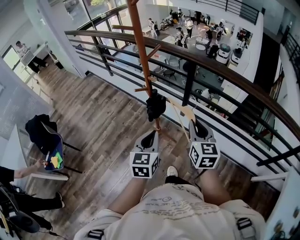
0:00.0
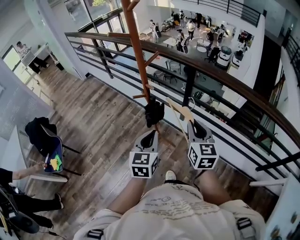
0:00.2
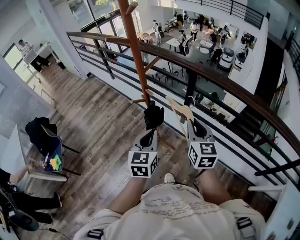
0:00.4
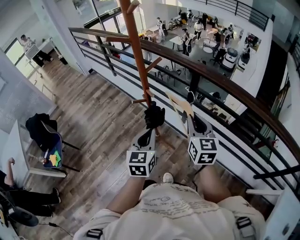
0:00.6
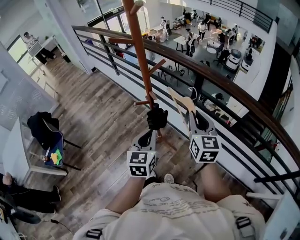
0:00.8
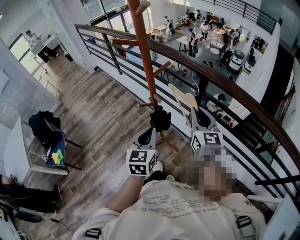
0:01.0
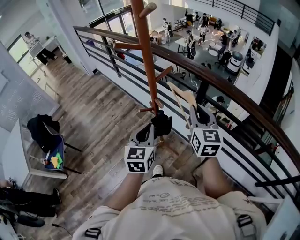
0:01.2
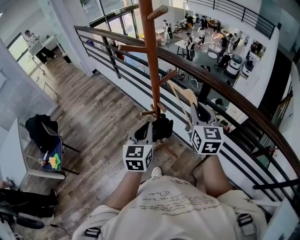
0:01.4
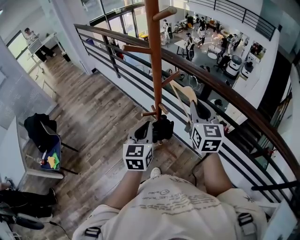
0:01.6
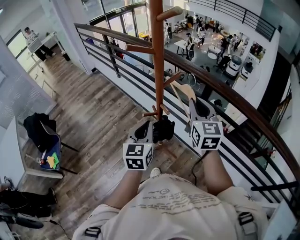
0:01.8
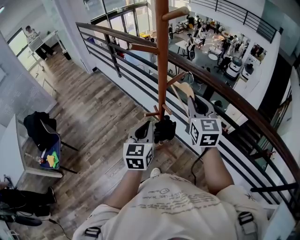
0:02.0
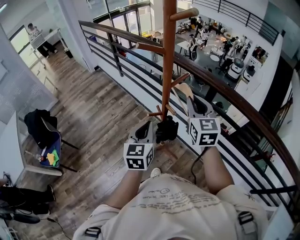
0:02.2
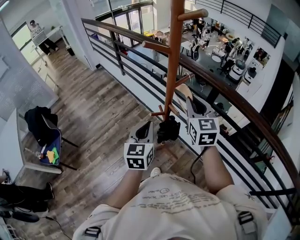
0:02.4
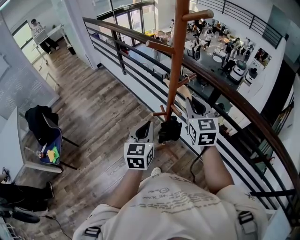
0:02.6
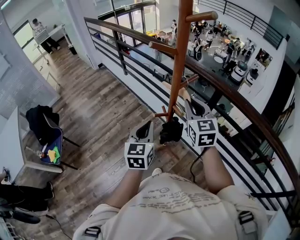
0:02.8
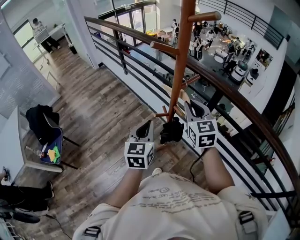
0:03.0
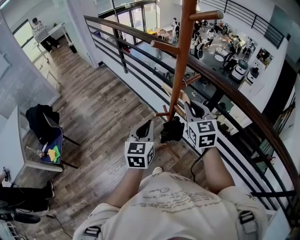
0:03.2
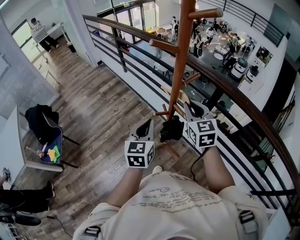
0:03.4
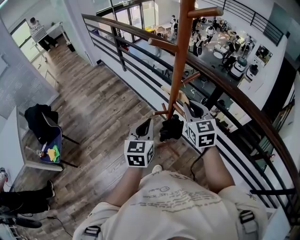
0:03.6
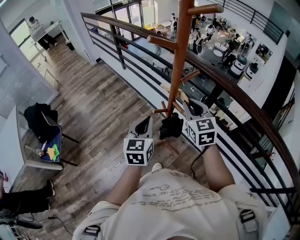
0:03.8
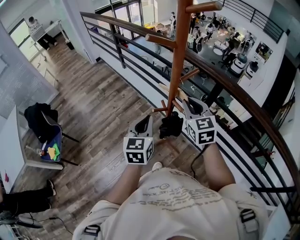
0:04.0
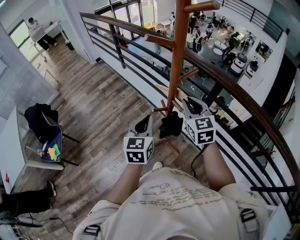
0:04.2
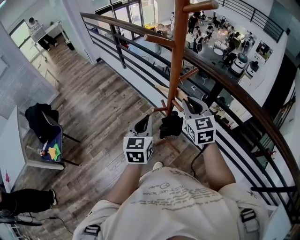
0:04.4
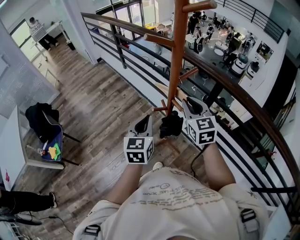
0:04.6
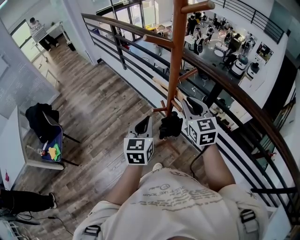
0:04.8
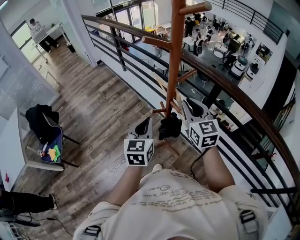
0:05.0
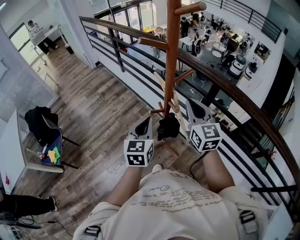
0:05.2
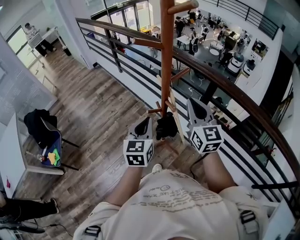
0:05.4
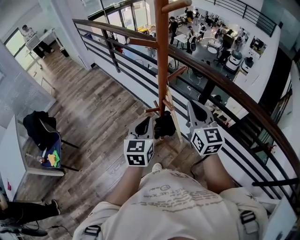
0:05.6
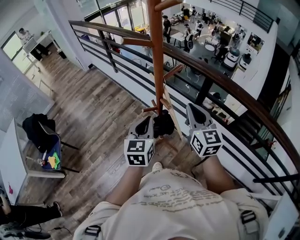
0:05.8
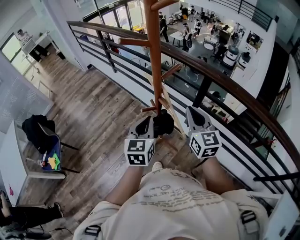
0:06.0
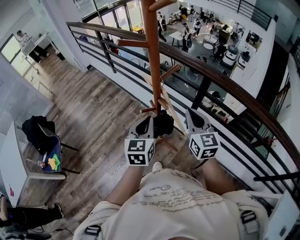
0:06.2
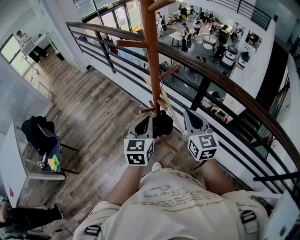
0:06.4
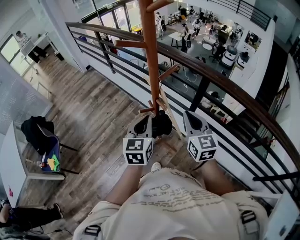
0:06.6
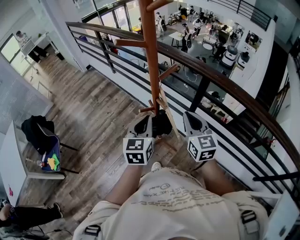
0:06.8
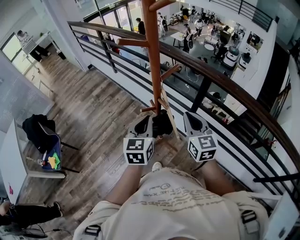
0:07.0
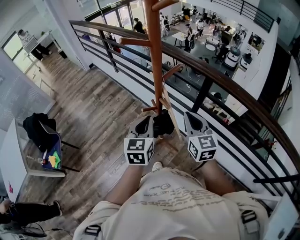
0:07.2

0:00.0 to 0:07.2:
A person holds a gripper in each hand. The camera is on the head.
0:00.0 to 0:01.4: The two grippers go approximately 20 cm forward.
0:01.4 to 0:02.8: The right gripper goes roughly 10 cm to the left, while the left gripper heads to the left, covering approximately 5 cm.
0:02.8 to 0:04.4: The grippers move only a little.
0:04.4 to 0:05.8: The left gripper shifts by some 5 cm. Meanwhile the right gripper heads to the right and backward, covering some 10 cm.
0:05.8 to 0:07.2: The grippers move only a little.

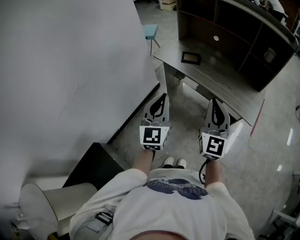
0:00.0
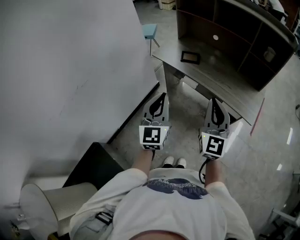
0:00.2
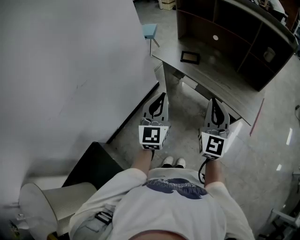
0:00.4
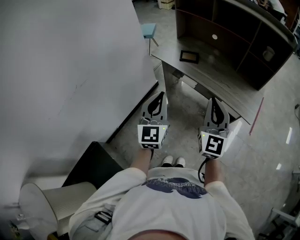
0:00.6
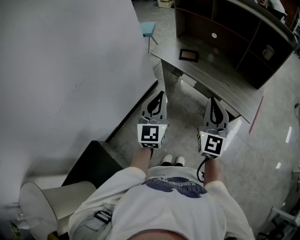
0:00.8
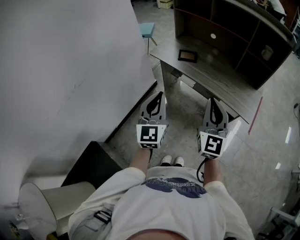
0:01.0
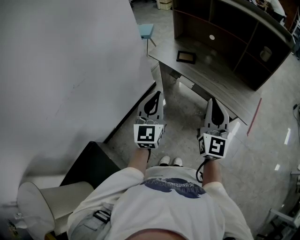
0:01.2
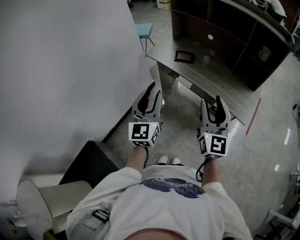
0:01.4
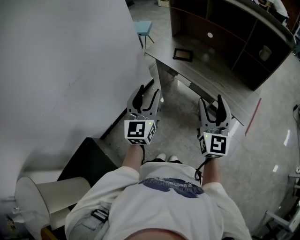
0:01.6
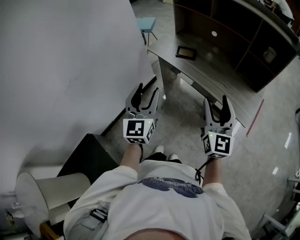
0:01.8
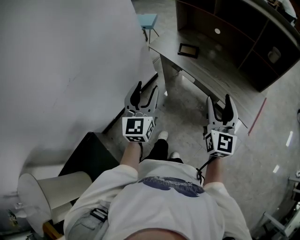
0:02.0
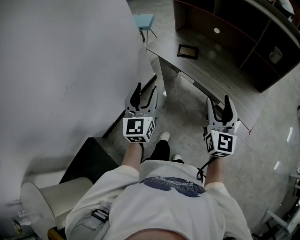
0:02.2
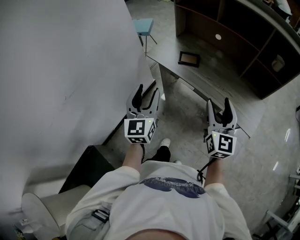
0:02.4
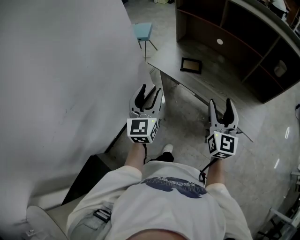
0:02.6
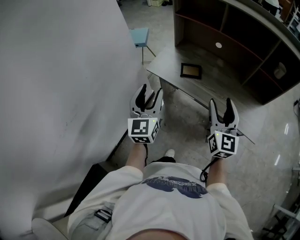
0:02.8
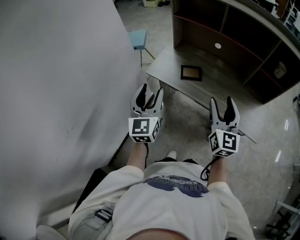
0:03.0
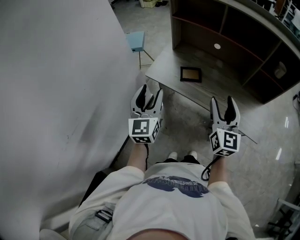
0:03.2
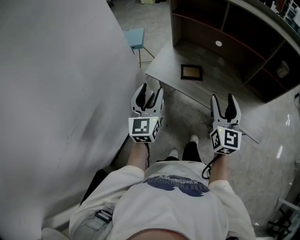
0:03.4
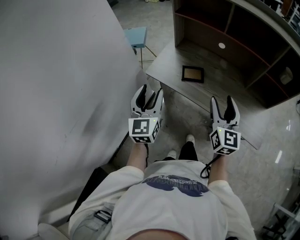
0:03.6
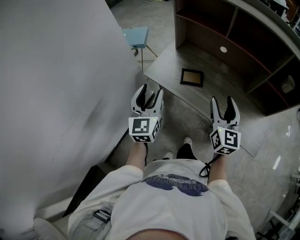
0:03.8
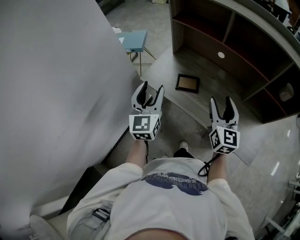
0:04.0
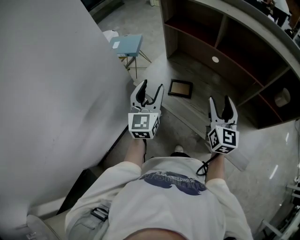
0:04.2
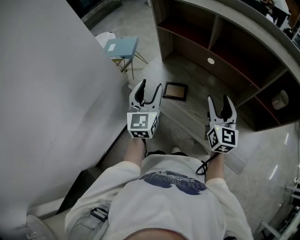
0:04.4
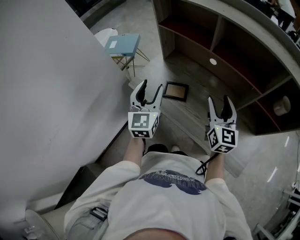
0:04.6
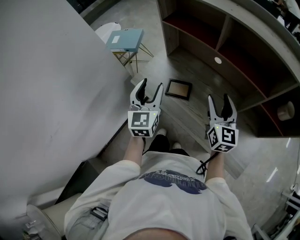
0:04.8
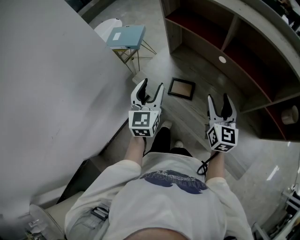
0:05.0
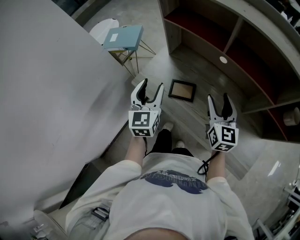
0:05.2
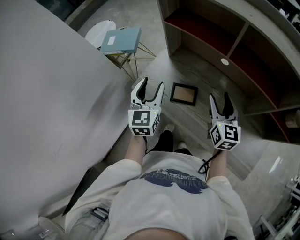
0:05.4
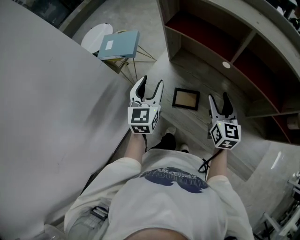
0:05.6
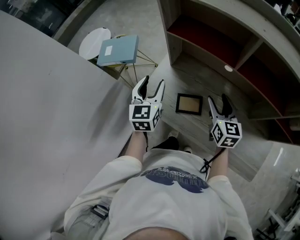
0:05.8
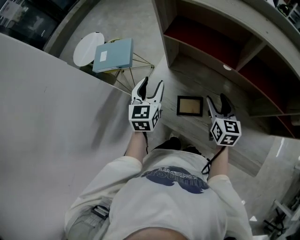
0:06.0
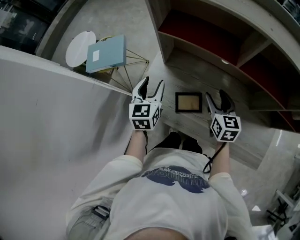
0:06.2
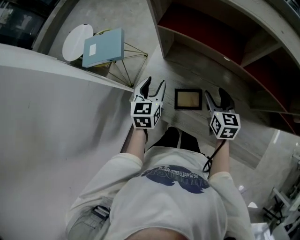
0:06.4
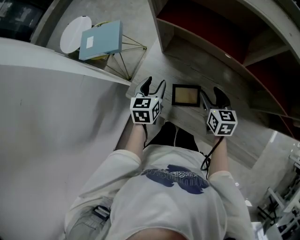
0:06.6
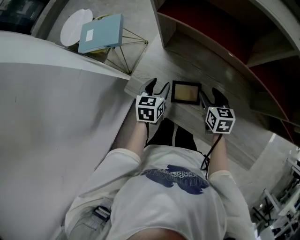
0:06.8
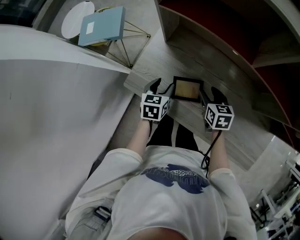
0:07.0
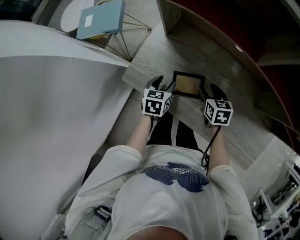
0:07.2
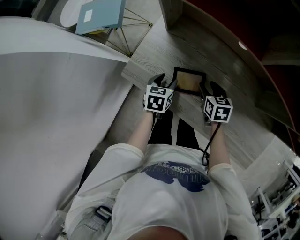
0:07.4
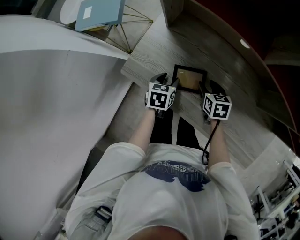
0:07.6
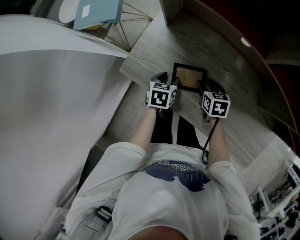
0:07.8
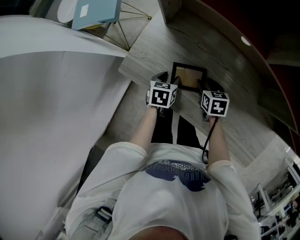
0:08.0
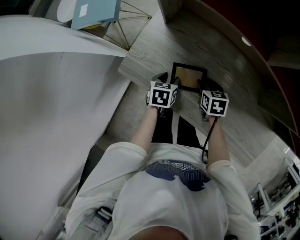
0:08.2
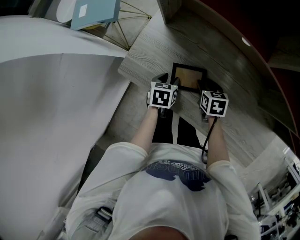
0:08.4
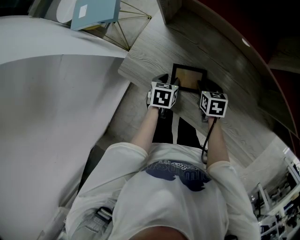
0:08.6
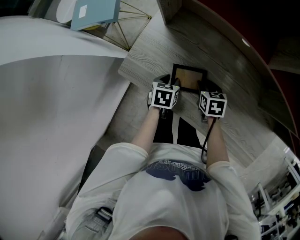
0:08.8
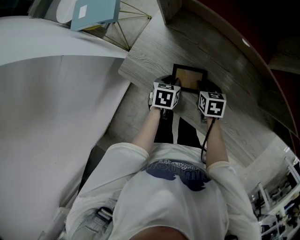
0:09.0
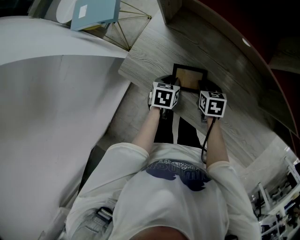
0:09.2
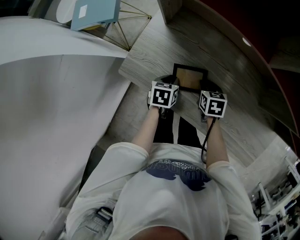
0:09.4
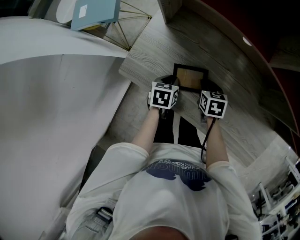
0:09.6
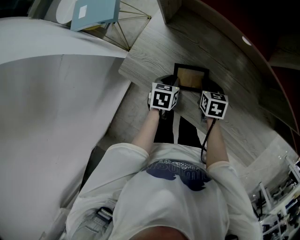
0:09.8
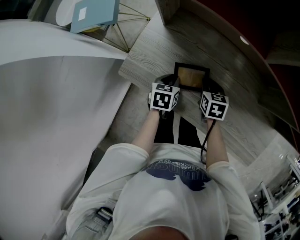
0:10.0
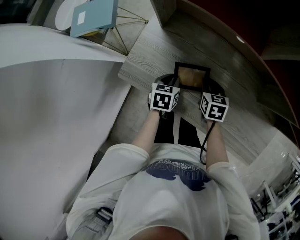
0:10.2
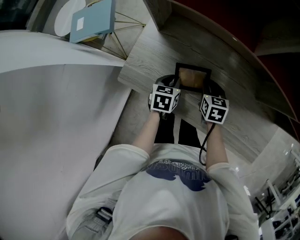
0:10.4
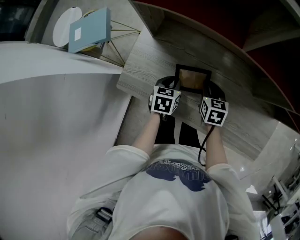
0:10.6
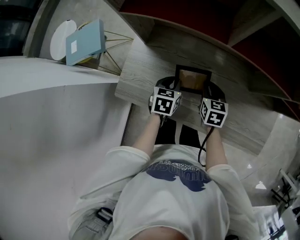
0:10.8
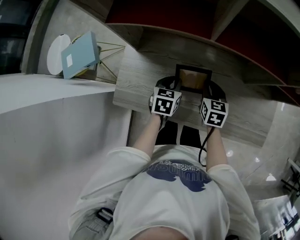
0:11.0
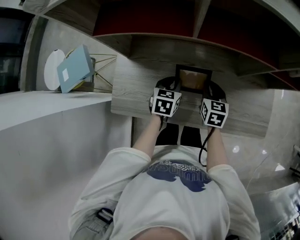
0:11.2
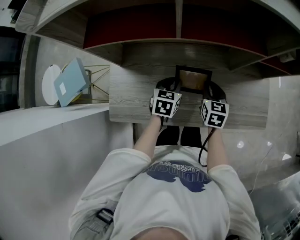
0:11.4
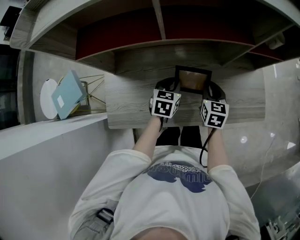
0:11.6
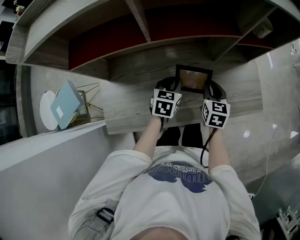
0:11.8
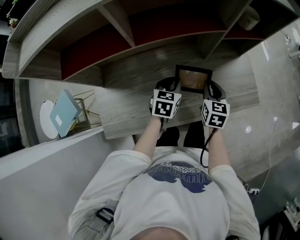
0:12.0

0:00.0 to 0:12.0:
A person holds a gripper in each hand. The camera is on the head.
0:00.0 to 0:01.6: The right gripper travels to the right by some 5 cm, and opens its fingers; the left gripper opens.
0:01.6 to 0:03.0: The left gripper is displaced forward and to the left by approximately 30 cm. The right gripper travels forward by roughly 25 cm.
0:03.0 to 0:04.4: Both grippers travel together forward and to the right, some 25 cm.
0:04.4 to 0:06.0: The right gripper heads forward, downward and to the left, covering about 20 cm, and swivels approximately 20 degrees. The left gripper moves forward and downward, roughly 25 cm.
0:06.0 to 0:07.6: The grippers both shift downward by about 25 cm. The right gripper turns by approximately 30 degrees, while the left gripper angles its fingers downward, by roughly 30 degrees.
0:07.6 to 0:09.0: The left gripper closes its fingers.
0:09.0 to 0:10.4: The left gripper ends up about 5 cm from where it was. The right gripper ends up approximately 5 cm from where it was.
0:10.4 to 0:12.0: The left gripper changes place by about 25 cm, and changes its angle by about 50 degrees. The right gripper changes place by about 30 cm, and swivels roughly 50 degrees.

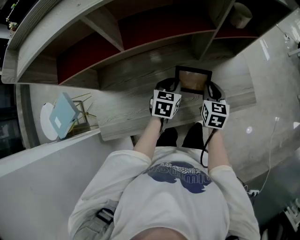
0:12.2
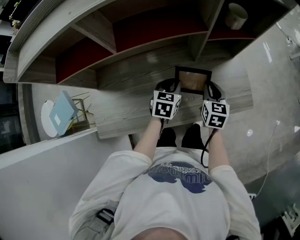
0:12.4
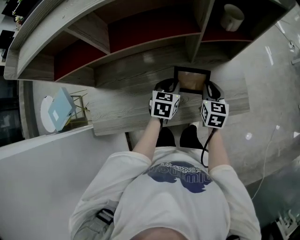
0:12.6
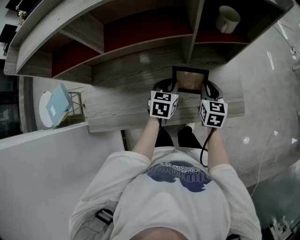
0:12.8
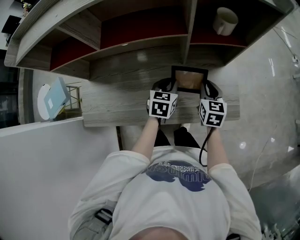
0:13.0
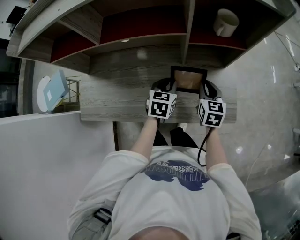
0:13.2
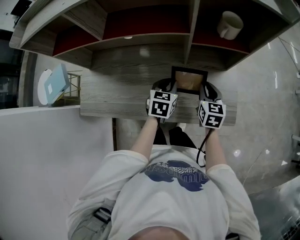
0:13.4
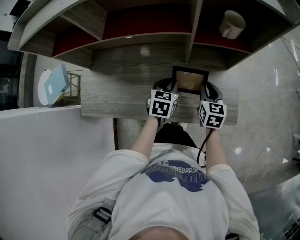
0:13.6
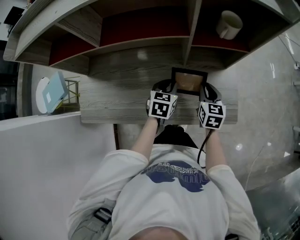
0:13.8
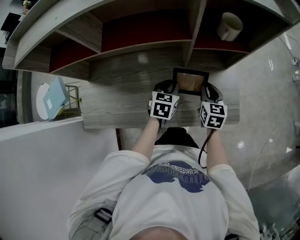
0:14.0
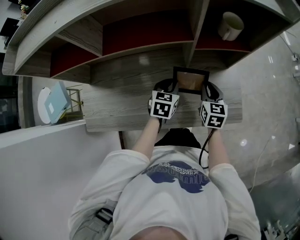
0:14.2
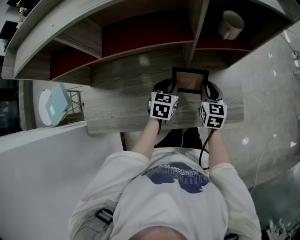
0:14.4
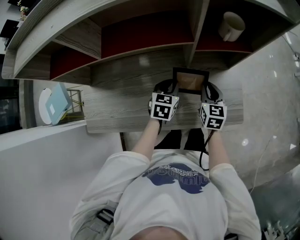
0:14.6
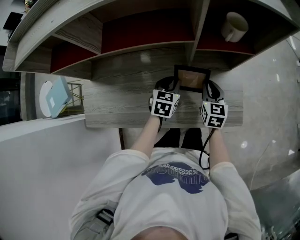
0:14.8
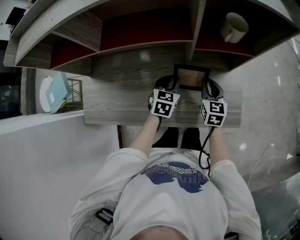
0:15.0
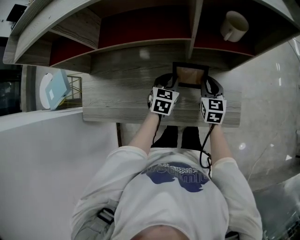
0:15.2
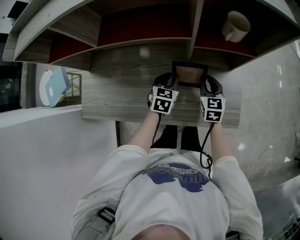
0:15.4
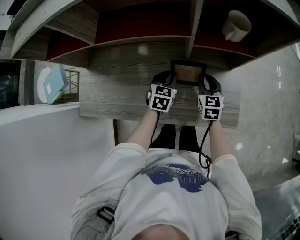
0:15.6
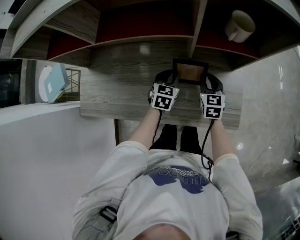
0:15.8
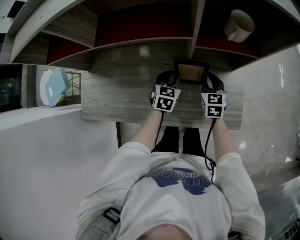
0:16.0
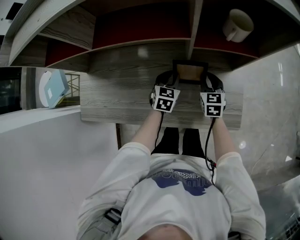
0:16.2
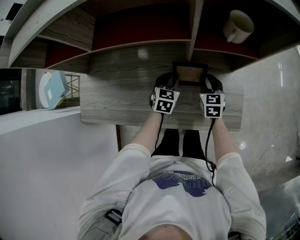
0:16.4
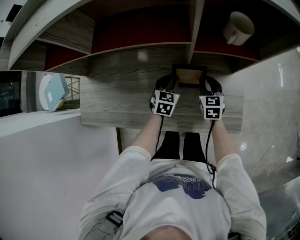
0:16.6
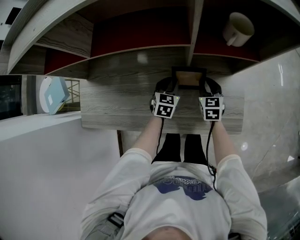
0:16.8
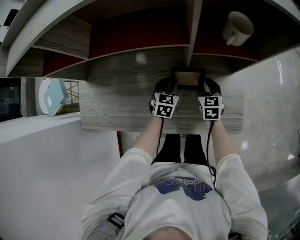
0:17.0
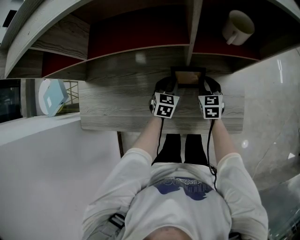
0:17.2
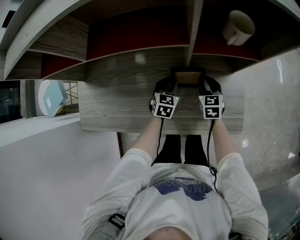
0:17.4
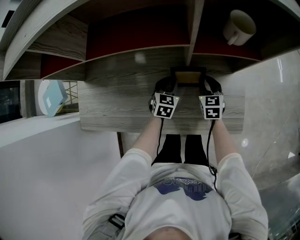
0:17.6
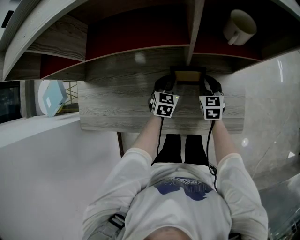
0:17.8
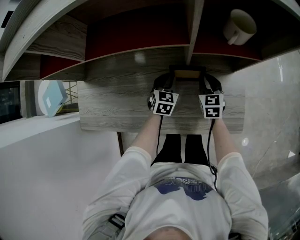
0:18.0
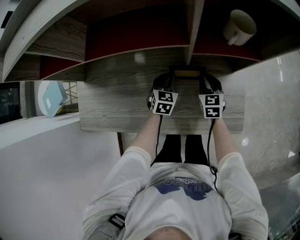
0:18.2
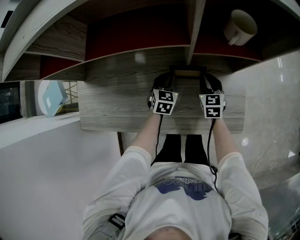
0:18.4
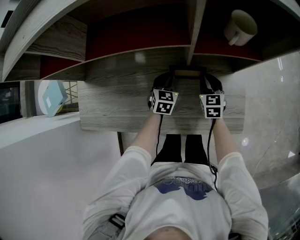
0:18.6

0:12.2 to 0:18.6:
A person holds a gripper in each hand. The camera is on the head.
0:12.2 to 0:13.8: The left gripper shifts about 10 cm to the right. The right gripper goes approximately 10 cm to the right and forward.
0:13.8 to 0:15.4: The right gripper moves some 5 cm.
0:15.4 to 0:17.0: The grippers both shift downward by about 5 cm.
0:17.0 to 0:18.6: The grippers make only small movements.
